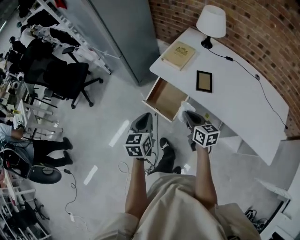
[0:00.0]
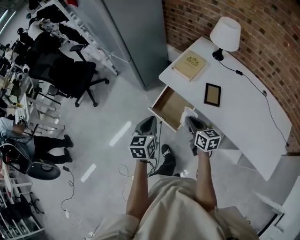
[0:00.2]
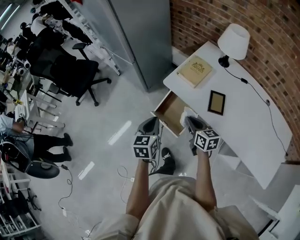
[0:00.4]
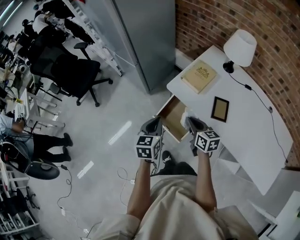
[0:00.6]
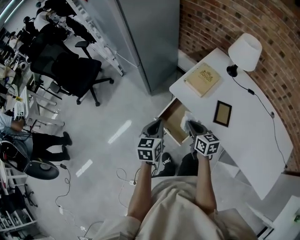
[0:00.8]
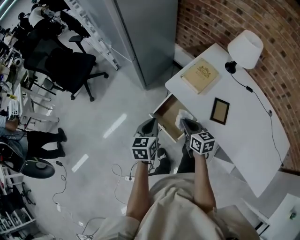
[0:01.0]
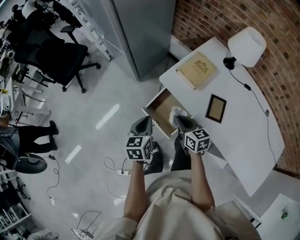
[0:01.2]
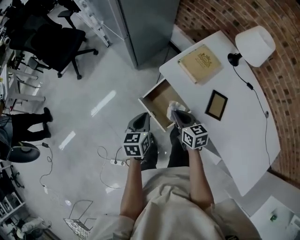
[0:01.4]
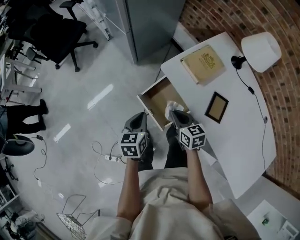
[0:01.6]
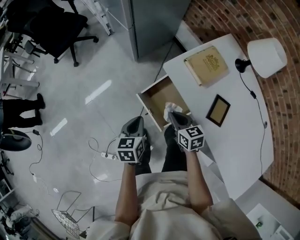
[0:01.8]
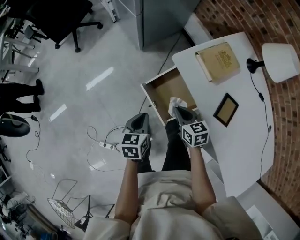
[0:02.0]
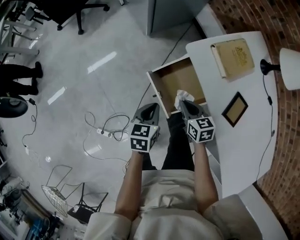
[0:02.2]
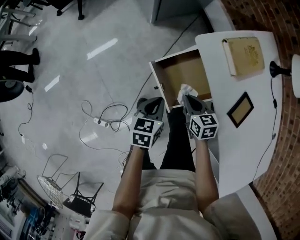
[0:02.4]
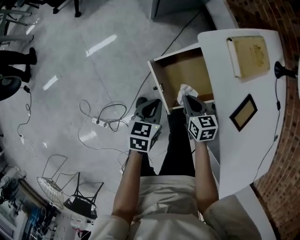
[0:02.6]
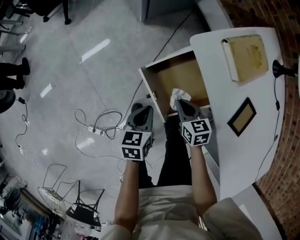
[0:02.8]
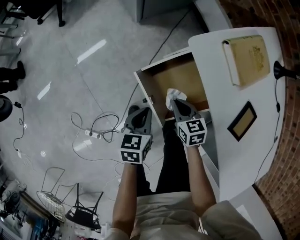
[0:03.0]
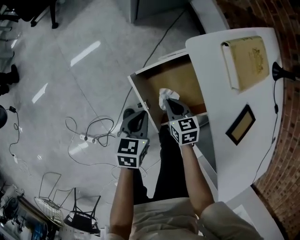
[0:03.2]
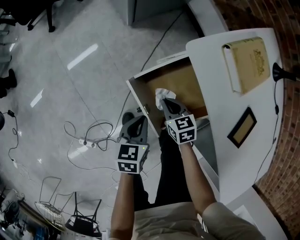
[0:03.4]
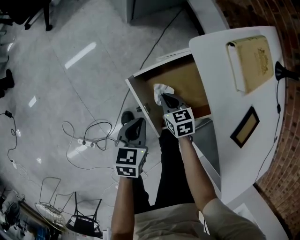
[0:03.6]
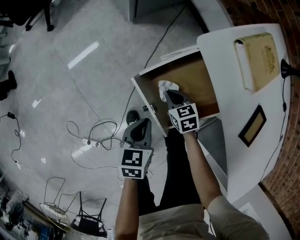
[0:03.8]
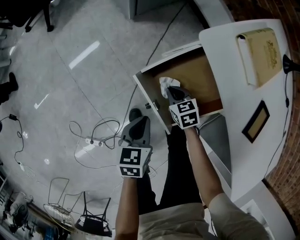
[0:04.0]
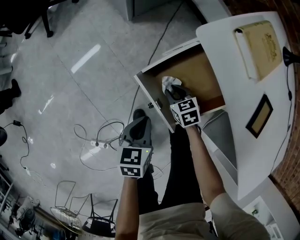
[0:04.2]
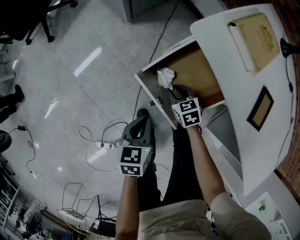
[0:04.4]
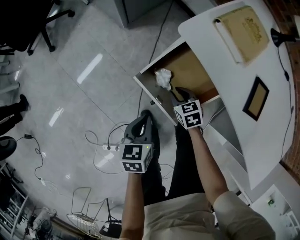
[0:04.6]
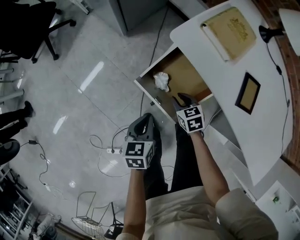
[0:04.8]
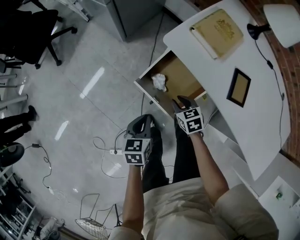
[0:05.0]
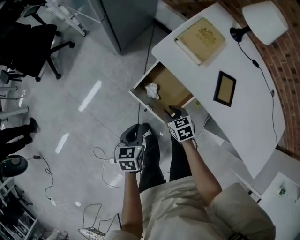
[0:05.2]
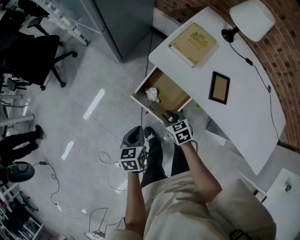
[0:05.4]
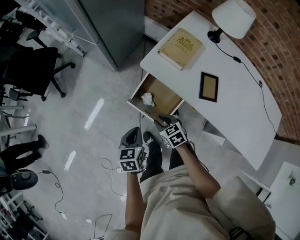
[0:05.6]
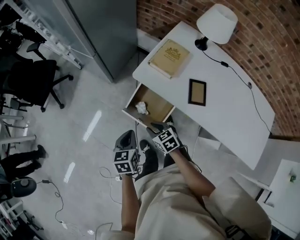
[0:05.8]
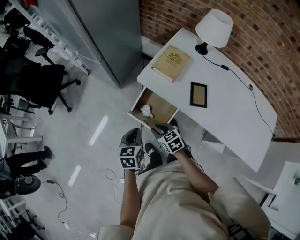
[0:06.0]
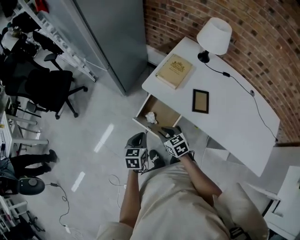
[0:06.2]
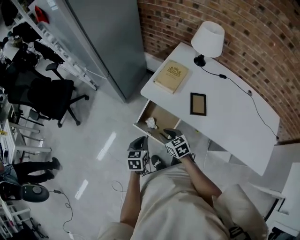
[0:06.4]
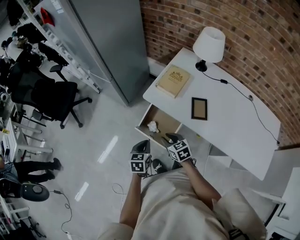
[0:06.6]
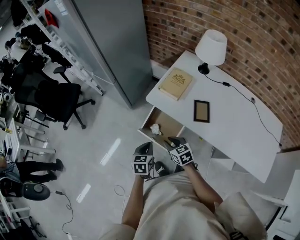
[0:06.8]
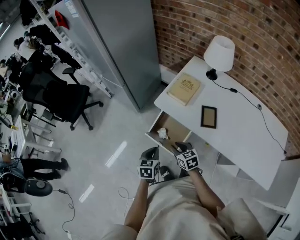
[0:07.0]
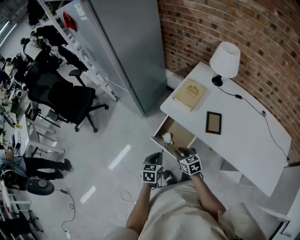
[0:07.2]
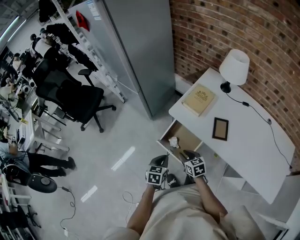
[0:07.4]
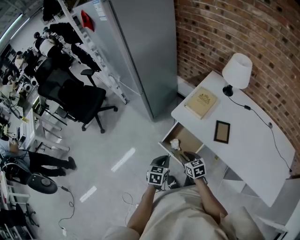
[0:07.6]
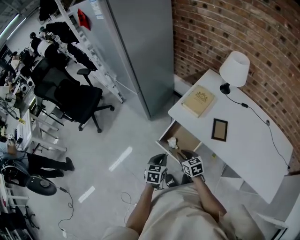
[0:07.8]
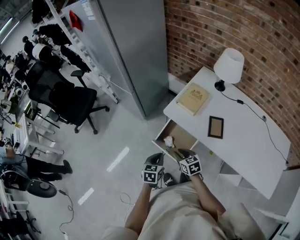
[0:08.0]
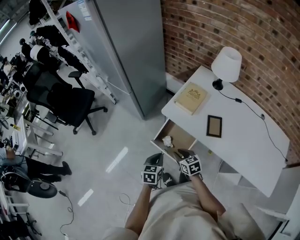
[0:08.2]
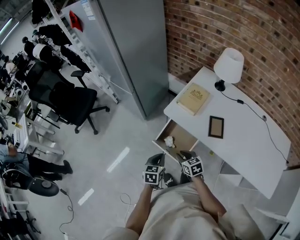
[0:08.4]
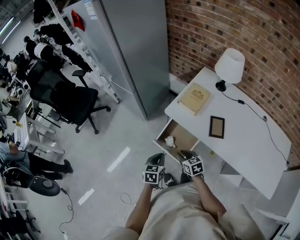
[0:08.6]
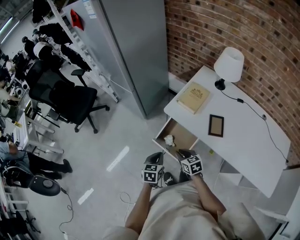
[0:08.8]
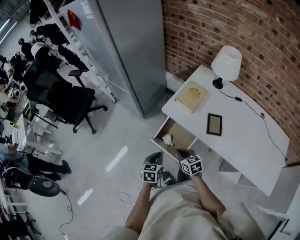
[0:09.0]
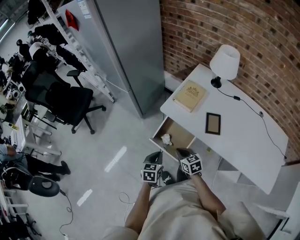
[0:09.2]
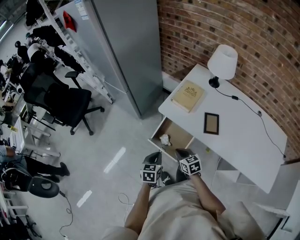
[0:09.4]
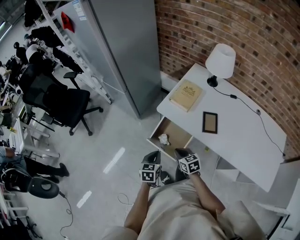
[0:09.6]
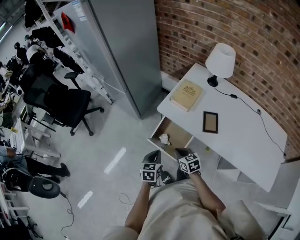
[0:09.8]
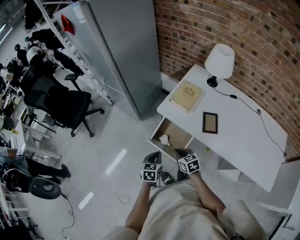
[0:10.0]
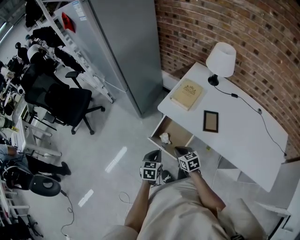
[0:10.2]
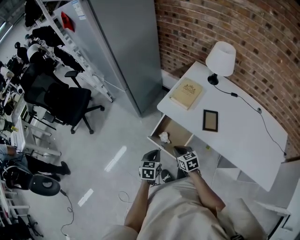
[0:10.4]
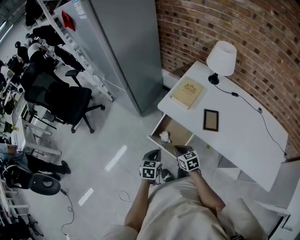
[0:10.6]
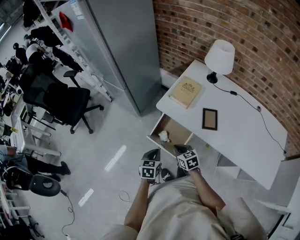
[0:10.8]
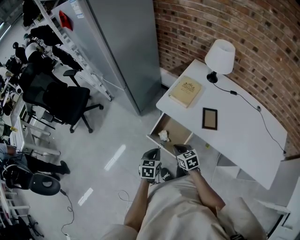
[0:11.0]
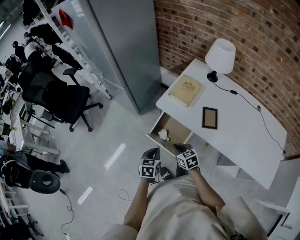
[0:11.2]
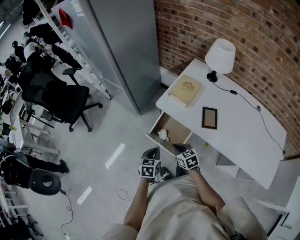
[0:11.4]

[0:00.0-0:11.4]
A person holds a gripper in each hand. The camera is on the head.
0.0 to 1.4 s: Both grippers travel together forward and downward, about 20 cm. The right gripper turns by approximately 20 degrees.
1.4 to 2.8 s: The two grippers go some 20 cm downward. The right gripper rotates about 20 degrees.
2.8 to 4.2 s: The left gripper moves downward, approximately 5 cm. The right gripper goes about 15 cm downward, and opens its fingers.
4.2 to 5.6 s: The grippers both shift upward by approximately 20 cm.
5.6 to 7.2 s: The left gripper is displaced upward by some 5 cm, while the right gripper heads upward, covering some 10 cm.
7.2 to 8.6 s: There are only small adjustments of the grippers.
8.6 to 10.0 s: The right gripper closes.
10.0 to 11.4 s: The two grippers keep their place.

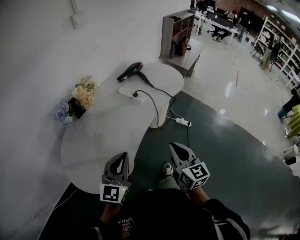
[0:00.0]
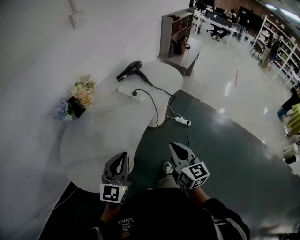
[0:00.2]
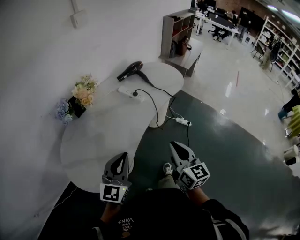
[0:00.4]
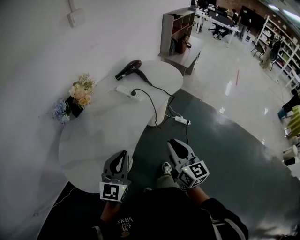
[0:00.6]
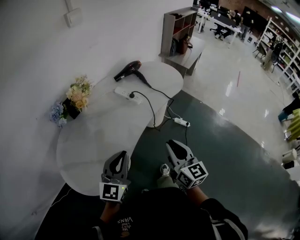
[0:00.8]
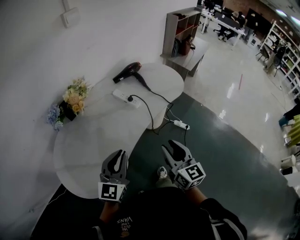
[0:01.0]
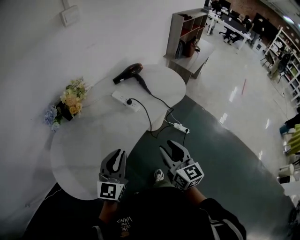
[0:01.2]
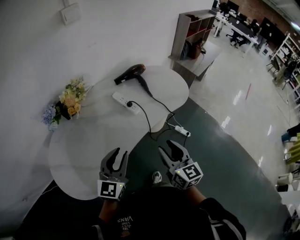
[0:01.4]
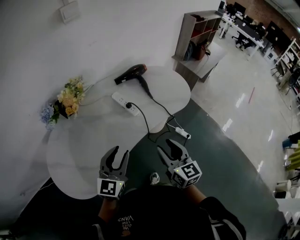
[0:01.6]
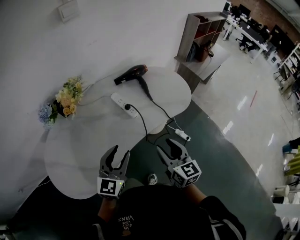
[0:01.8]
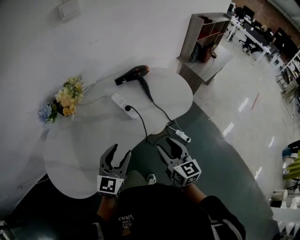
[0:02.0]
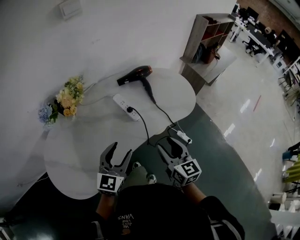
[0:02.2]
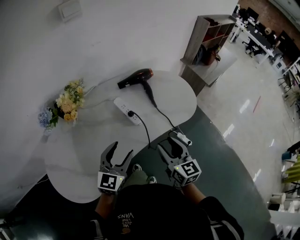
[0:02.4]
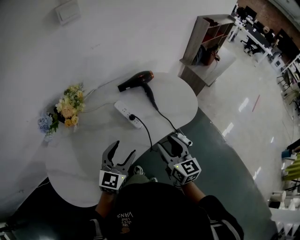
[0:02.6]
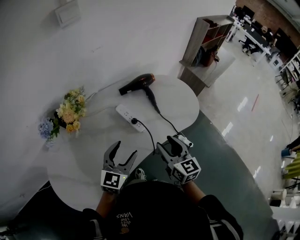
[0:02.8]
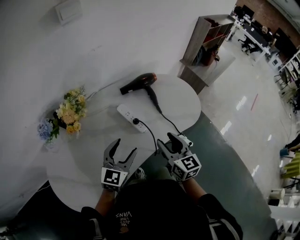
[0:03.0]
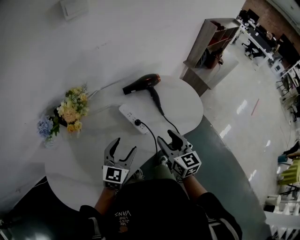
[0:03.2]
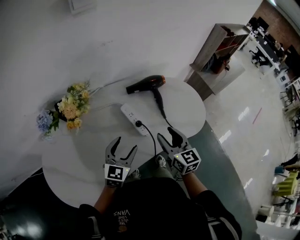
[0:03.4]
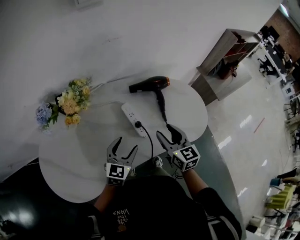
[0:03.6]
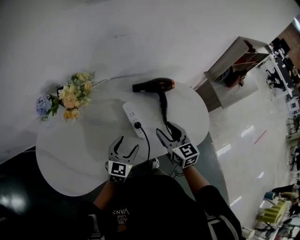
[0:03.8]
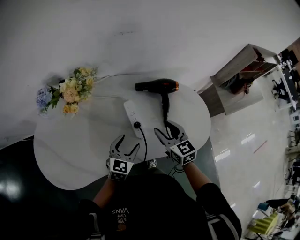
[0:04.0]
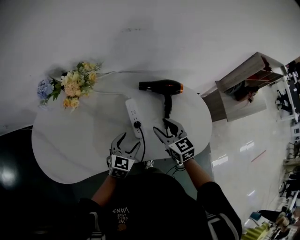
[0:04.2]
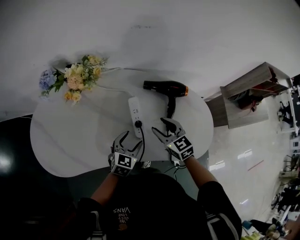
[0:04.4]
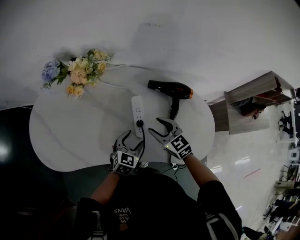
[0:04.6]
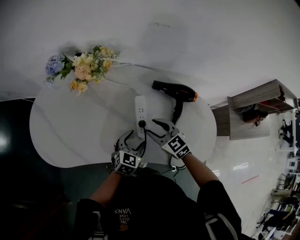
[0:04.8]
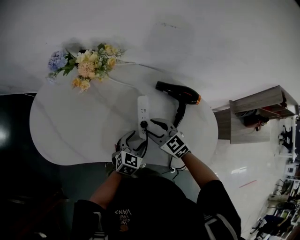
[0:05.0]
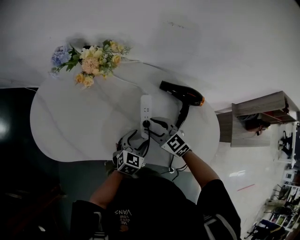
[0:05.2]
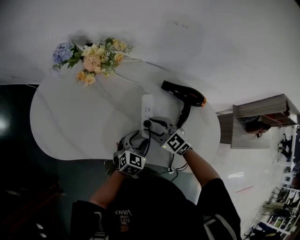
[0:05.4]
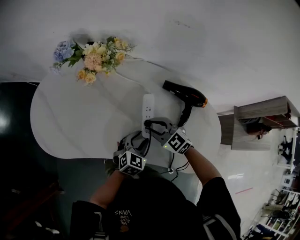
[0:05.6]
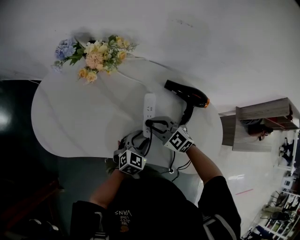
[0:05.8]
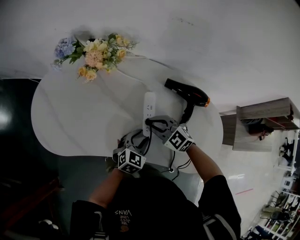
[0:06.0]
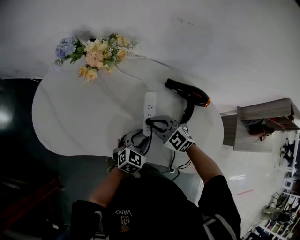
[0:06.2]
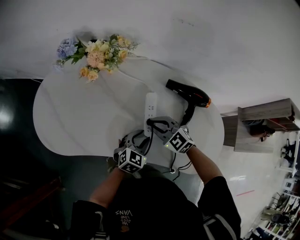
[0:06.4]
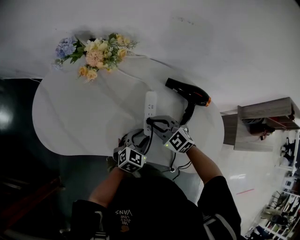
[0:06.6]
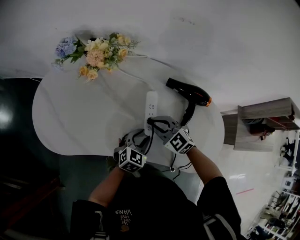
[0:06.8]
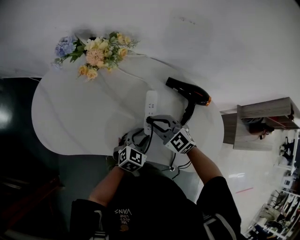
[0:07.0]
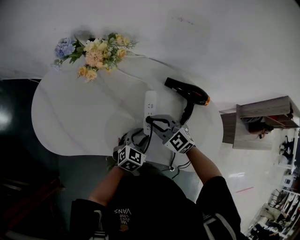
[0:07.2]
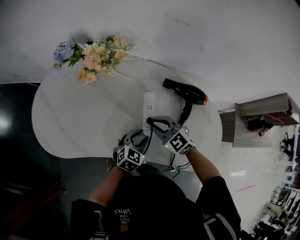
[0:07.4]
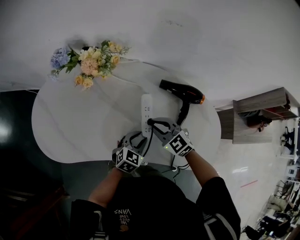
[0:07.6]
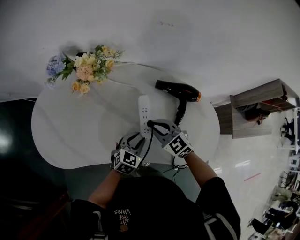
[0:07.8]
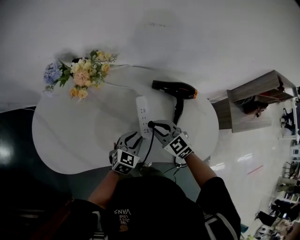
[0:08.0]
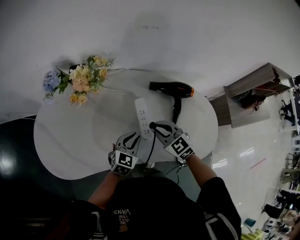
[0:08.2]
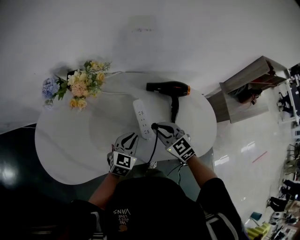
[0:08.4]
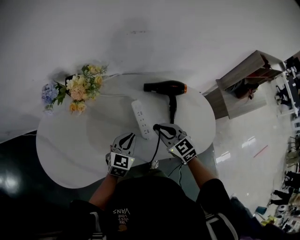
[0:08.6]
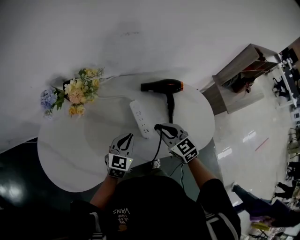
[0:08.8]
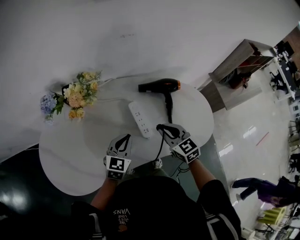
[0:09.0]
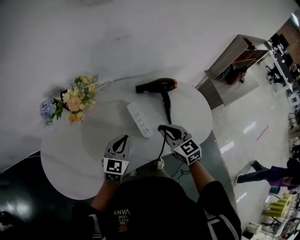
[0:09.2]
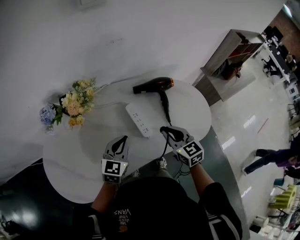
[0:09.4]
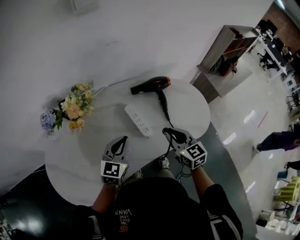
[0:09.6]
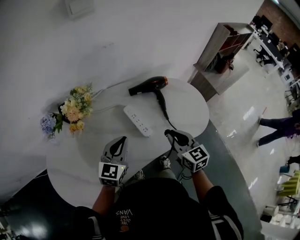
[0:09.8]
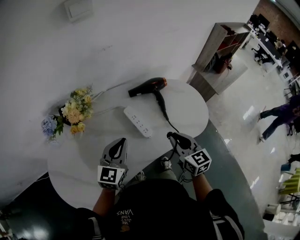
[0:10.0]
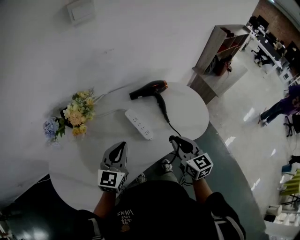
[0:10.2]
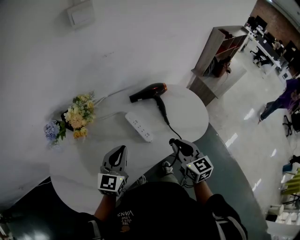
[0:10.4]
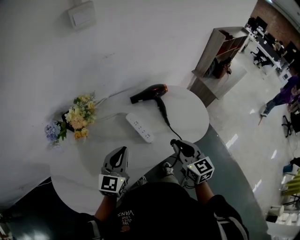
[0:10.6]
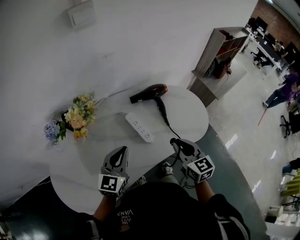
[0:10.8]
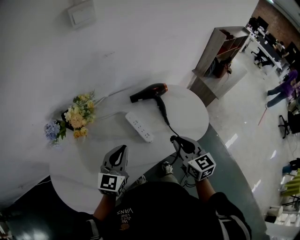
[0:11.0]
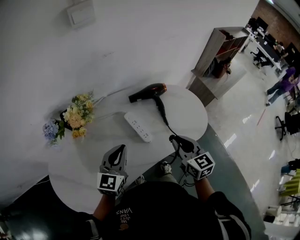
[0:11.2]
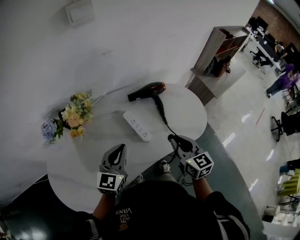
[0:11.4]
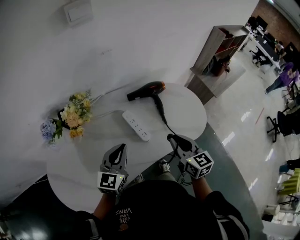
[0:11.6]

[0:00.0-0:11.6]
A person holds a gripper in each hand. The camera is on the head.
0.0 to 1.4 s: Both grippers move forward and to the right, some 15 cm. The right gripper opens its fingers.
1.4 to 2.8 s: The grippers both shift forward by some 15 cm. The left gripper opens up.
2.8 to 4.4 s: The left gripper travels downward by about 15 cm, and rotates approximately 30 degrees, while the right gripper moves approximately 20 cm, and turns by some 50 degrees.
4.4 to 5.8 s: The right gripper moves to the left and downward, some 10 cm, rotates roughly 40 degrees, and closes its fingers. The left gripper closes its fingers.
5.8 to 7.2 s: The grippers stay close to where they were, moving slightly.
7.2 to 8.8 s: The left gripper heads upward and to the left, covering approximately 10 cm, and closes up. The right gripper shifts roughly 10 cm upward and to the right, and rotates roughly 40 degrees.
8.8 to 10.2 s: The right gripper heads backward, upward and to the right, covering roughly 15 cm, and rotates roughly 40 degrees. Meanwhile the left gripper travels upward by roughly 10 cm.
10.2 to 11.6 s: The grippers move only a little.

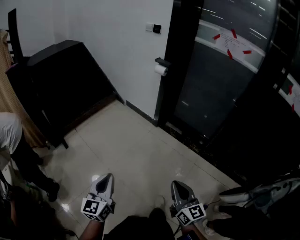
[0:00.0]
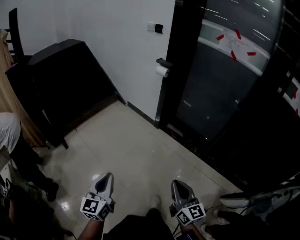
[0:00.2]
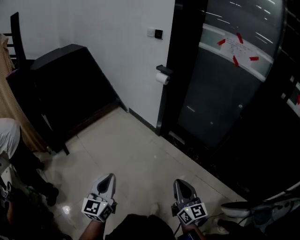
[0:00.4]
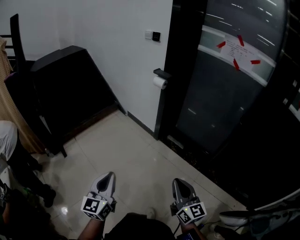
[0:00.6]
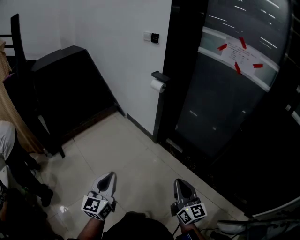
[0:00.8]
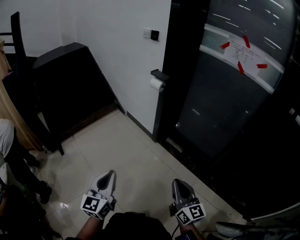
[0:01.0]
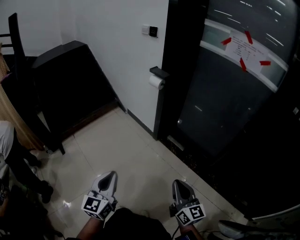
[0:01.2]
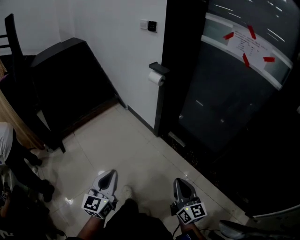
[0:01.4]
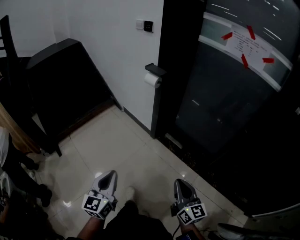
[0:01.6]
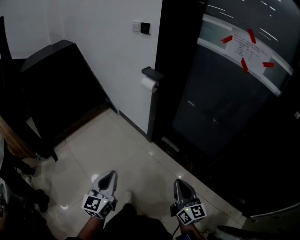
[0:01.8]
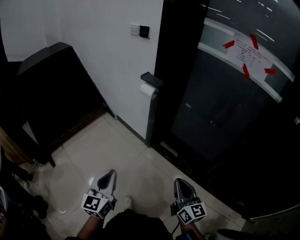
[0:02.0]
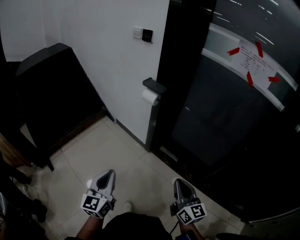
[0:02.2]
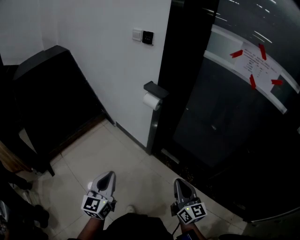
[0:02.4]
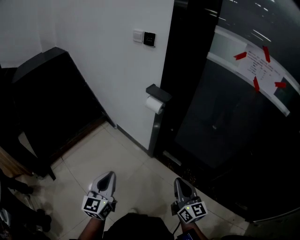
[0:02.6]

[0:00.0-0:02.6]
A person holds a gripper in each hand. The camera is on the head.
0.0 to 1.2 s: The two grippers go some 30 cm forward and to the right.
1.2 to 2.6 s: The grippers both shift forward by approximately 25 cm.
